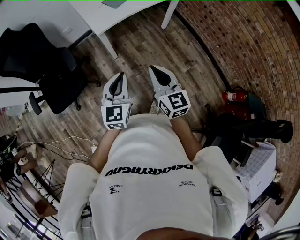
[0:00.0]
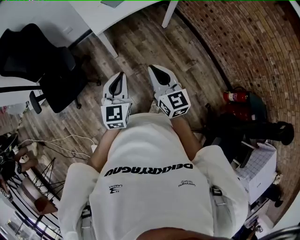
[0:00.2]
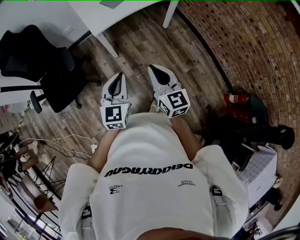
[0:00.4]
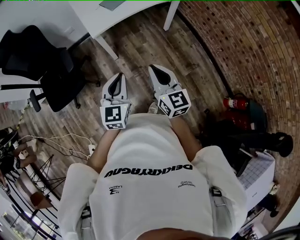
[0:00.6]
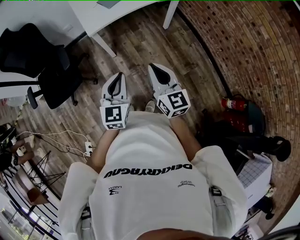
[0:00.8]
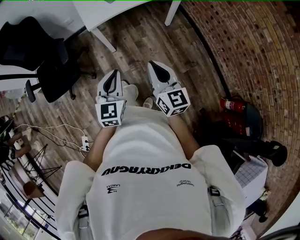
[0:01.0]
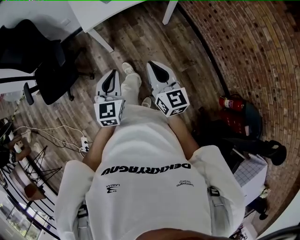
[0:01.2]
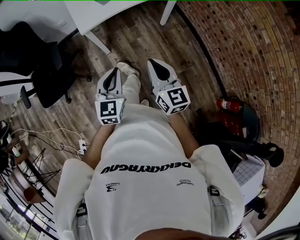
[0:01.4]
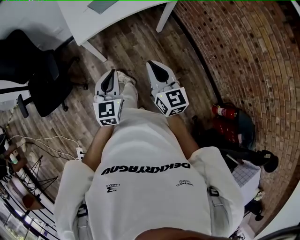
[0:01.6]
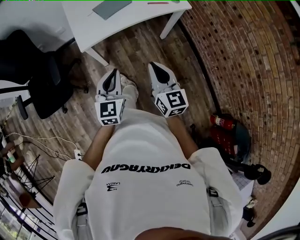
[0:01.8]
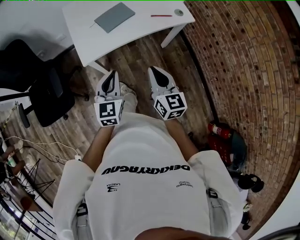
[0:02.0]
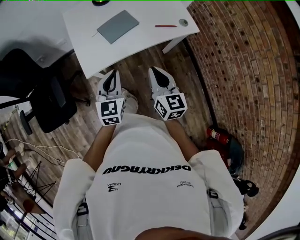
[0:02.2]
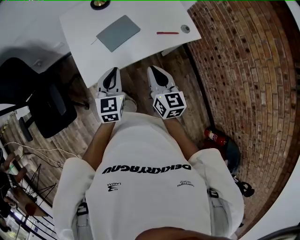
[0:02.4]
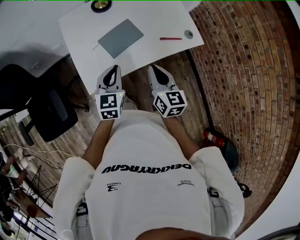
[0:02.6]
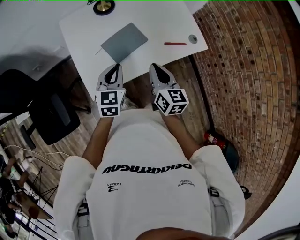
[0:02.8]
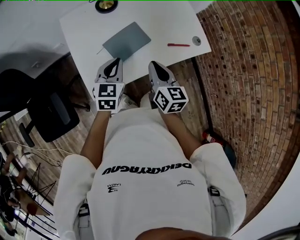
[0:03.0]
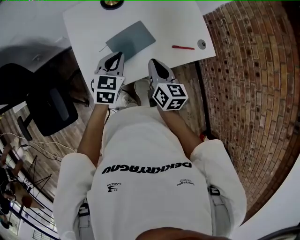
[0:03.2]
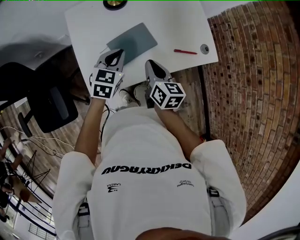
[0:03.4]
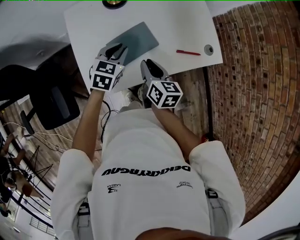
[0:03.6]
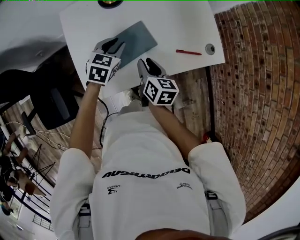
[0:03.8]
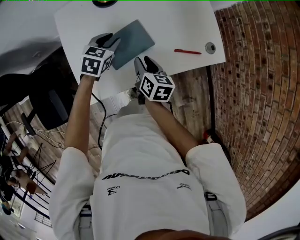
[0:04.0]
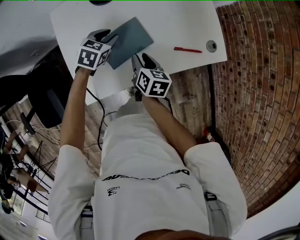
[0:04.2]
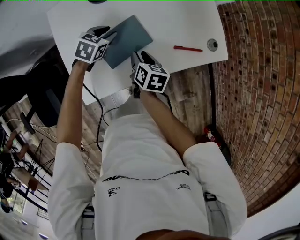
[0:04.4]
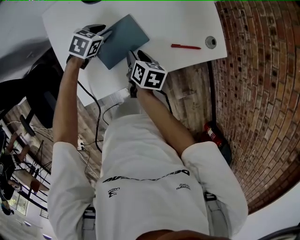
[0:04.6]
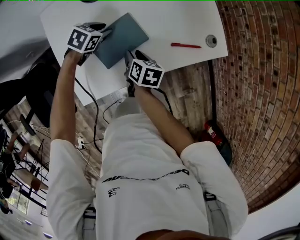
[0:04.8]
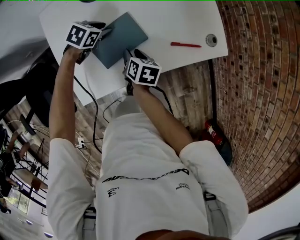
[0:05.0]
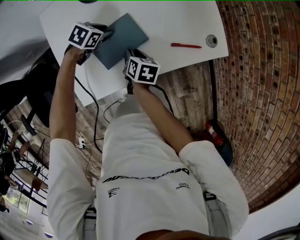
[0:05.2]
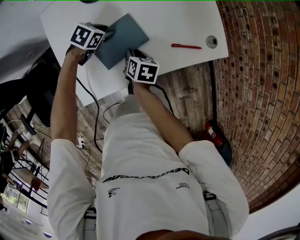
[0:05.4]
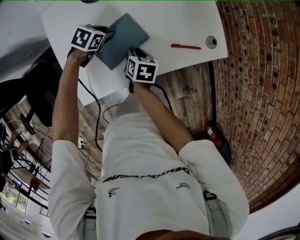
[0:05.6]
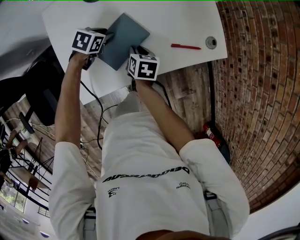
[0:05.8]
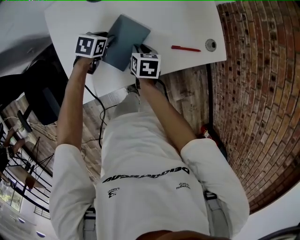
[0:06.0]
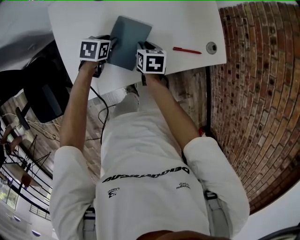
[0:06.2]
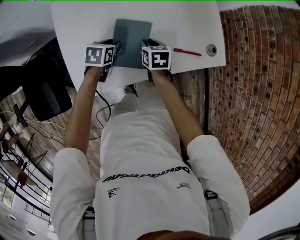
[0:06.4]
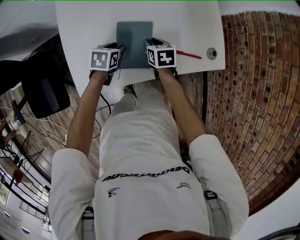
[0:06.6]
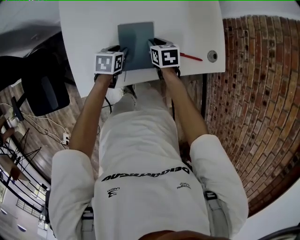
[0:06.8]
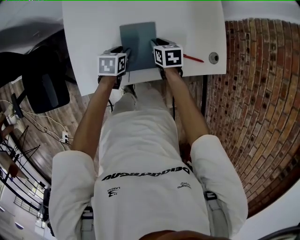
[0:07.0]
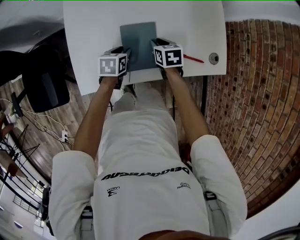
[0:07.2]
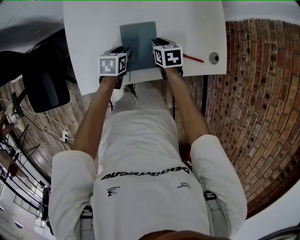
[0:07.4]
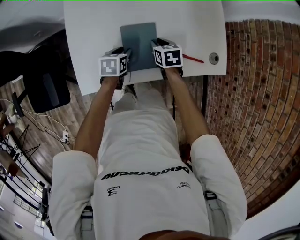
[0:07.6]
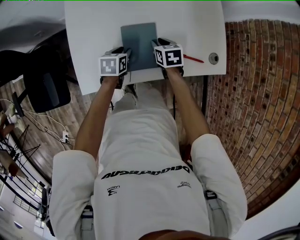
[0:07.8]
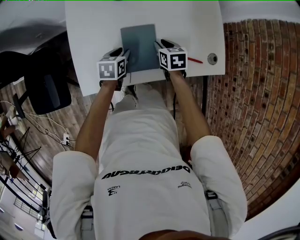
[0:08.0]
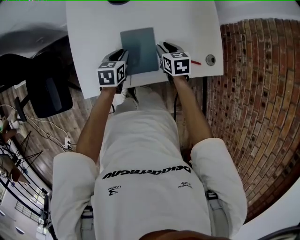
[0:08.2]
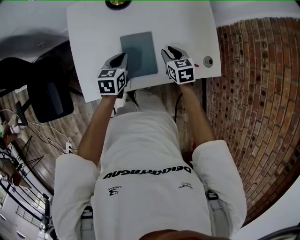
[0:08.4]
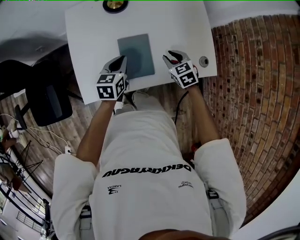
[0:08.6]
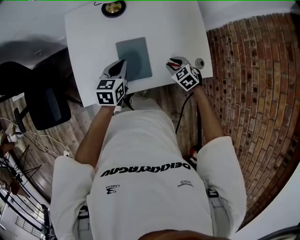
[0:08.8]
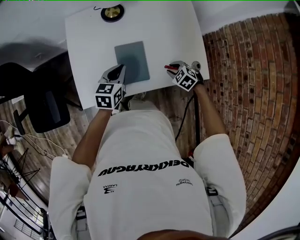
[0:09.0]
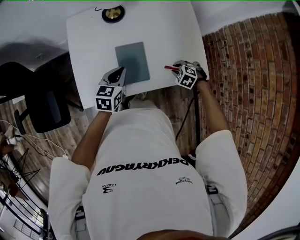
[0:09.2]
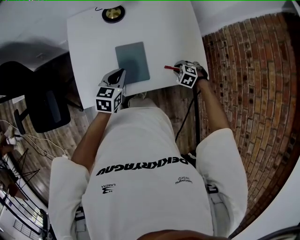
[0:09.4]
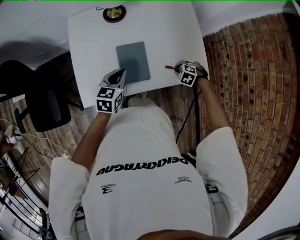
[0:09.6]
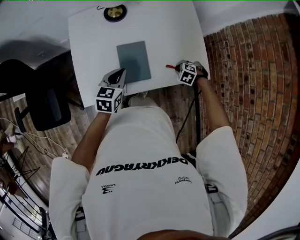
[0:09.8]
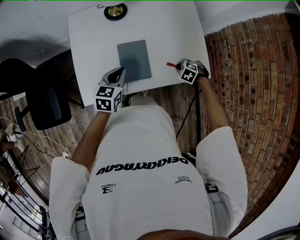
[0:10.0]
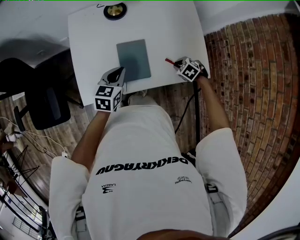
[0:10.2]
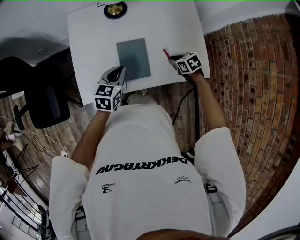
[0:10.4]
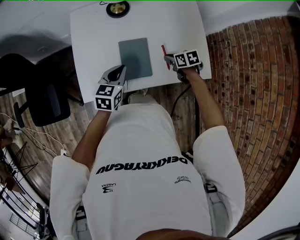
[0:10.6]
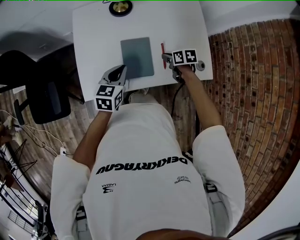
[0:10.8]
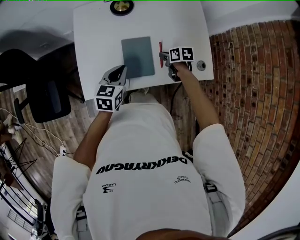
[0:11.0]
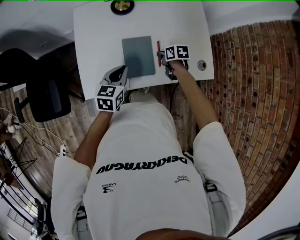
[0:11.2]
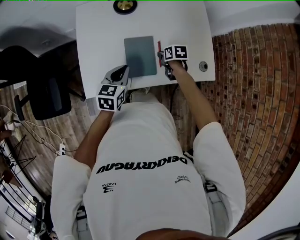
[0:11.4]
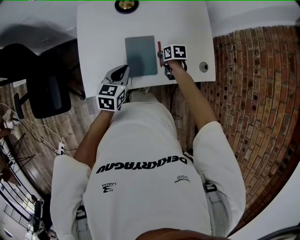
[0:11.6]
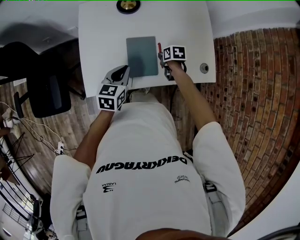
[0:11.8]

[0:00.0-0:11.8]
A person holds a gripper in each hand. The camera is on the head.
0:00.0 to 0:01.4: The right gripper shifts roughly 15 cm to the right and forward. Meanwhile the left gripper travels to the right, forward and downward by approximately 15 cm.
0:01.4 to 0:03.0: Both grippers are carried forward, roughly 60 cm.
0:03.0 to 0:04.4: The right gripper travels downward and forward by roughly 20 cm, swivels roughly 30 degrees, and opens up, while the left gripper shifts approximately 25 cm forward and downward, changes its angle by some 30 degrees, and opens up.
0:04.4 to 0:06.0: There are only small adjustments of the grippers.
0:06.0 to 0:07.4: The right gripper turns by approximately 20 degrees, while the left gripper heads backward, covering roughly 5 cm, and changes its angle by roughly 30 degrees.
0:07.4 to 0:08.8: The right gripper is displaced to the right, backward and upward by approximately 10 cm, and twists approximately 40 degrees counterclockwise, seen from behind. Meanwhile the left gripper heads upward, covering about 15 cm, rotates approximately 20 degrees, and closes up.
0:08.8 to 0:10.4: The right gripper turns by about 20 degrees.
0:10.4 to 0:11.8: The right gripper is displaced to the left by approximately 5 cm, and changes its angle by about 30 degrees.

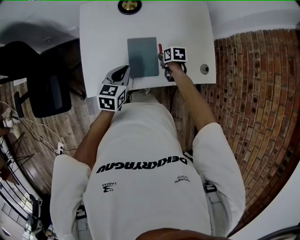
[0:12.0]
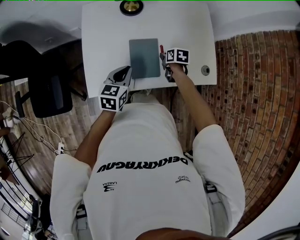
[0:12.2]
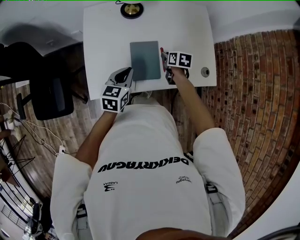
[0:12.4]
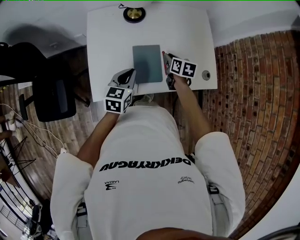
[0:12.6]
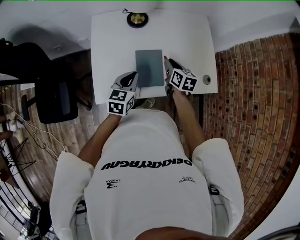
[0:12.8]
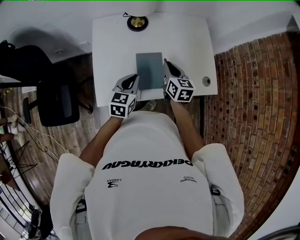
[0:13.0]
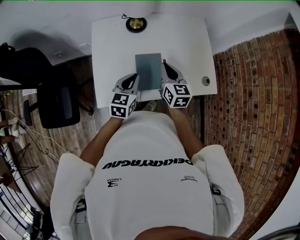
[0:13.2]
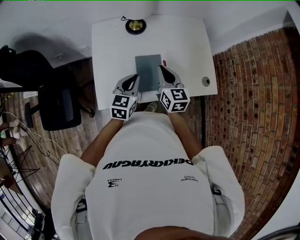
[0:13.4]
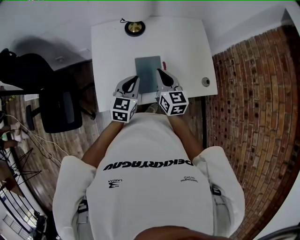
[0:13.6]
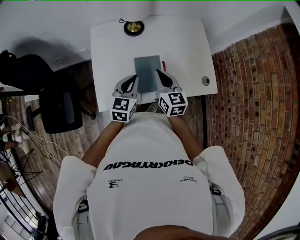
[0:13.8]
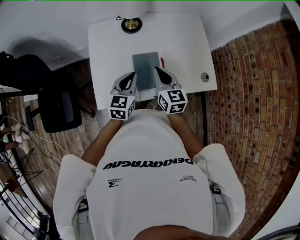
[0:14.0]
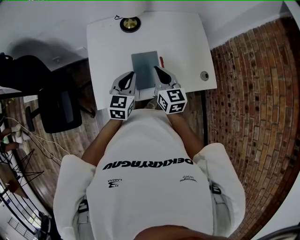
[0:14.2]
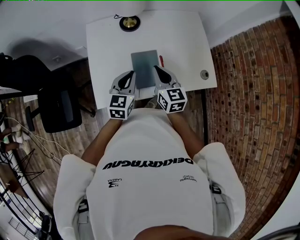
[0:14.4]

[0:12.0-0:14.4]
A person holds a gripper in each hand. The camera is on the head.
0:12.0 to 0:13.2: The left gripper moves upward, roughly 5 cm; the right gripper travels upward by some 25 cm, and points its fingers approximately 40 degrees further upward.
0:13.2 to 0:14.4: The grippers make only small movements.

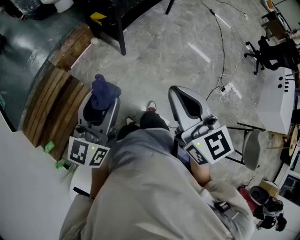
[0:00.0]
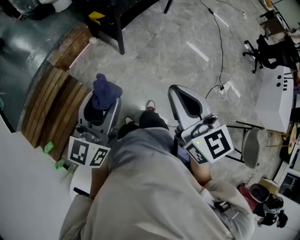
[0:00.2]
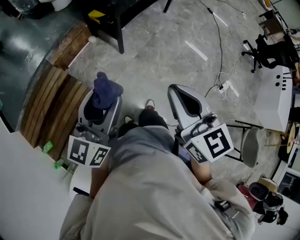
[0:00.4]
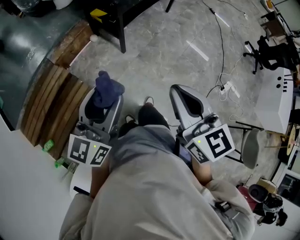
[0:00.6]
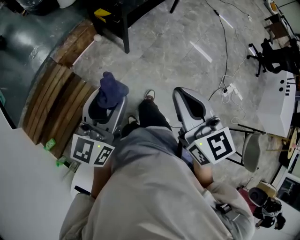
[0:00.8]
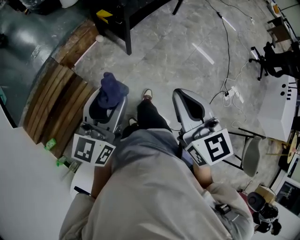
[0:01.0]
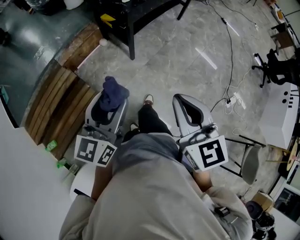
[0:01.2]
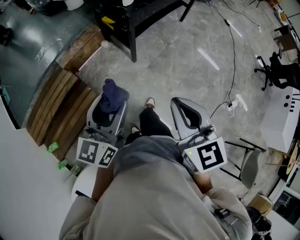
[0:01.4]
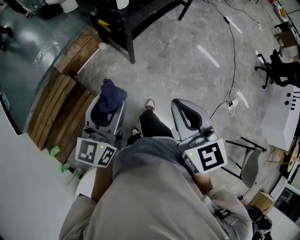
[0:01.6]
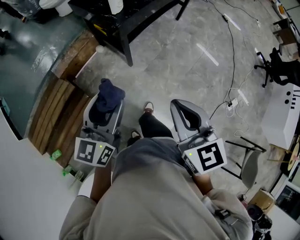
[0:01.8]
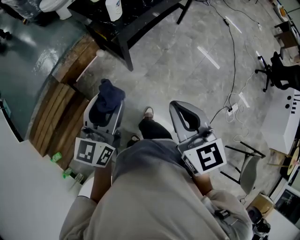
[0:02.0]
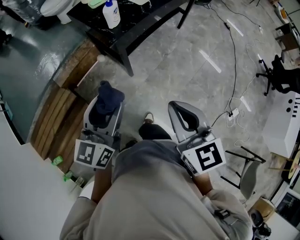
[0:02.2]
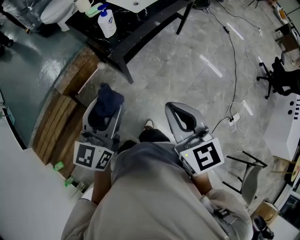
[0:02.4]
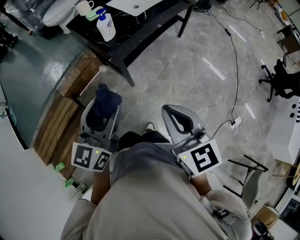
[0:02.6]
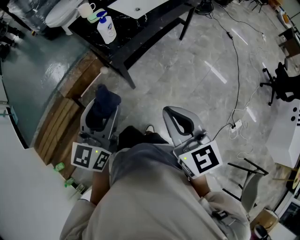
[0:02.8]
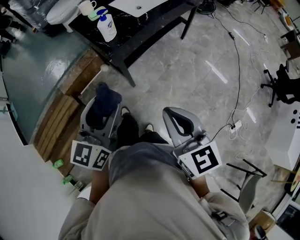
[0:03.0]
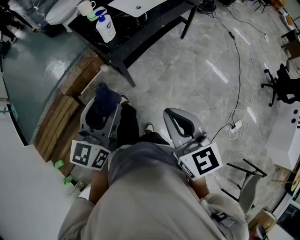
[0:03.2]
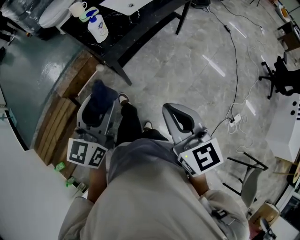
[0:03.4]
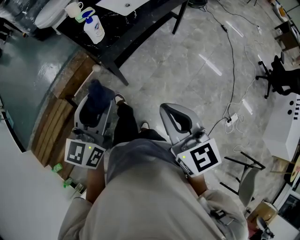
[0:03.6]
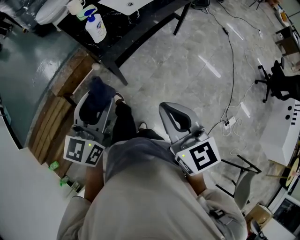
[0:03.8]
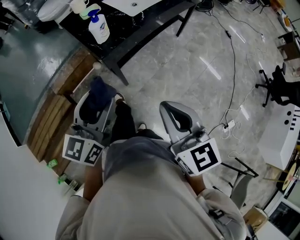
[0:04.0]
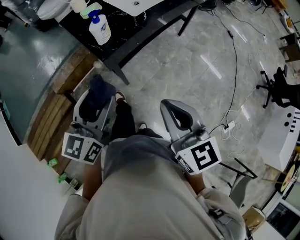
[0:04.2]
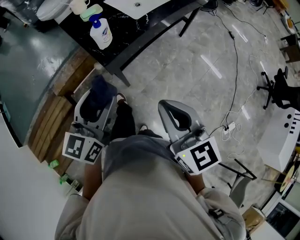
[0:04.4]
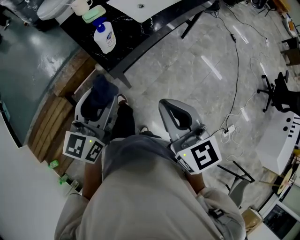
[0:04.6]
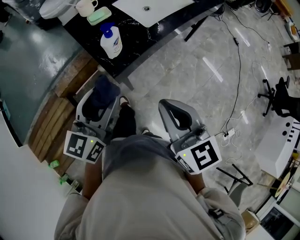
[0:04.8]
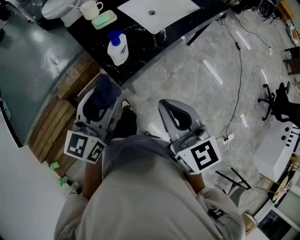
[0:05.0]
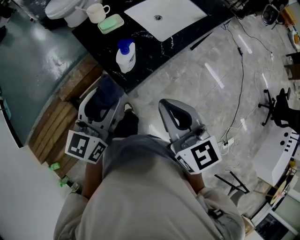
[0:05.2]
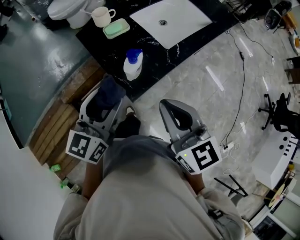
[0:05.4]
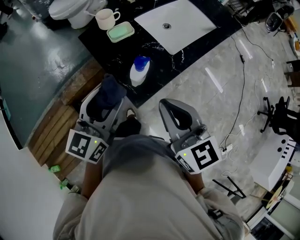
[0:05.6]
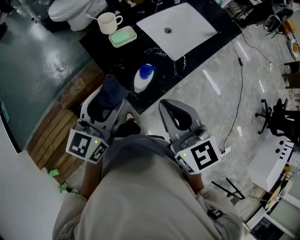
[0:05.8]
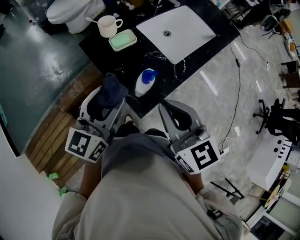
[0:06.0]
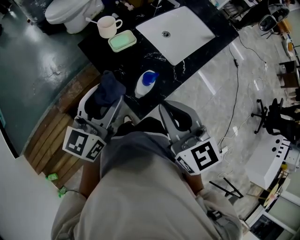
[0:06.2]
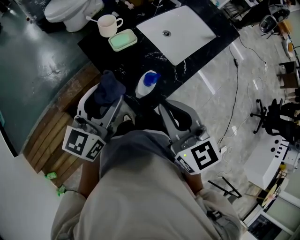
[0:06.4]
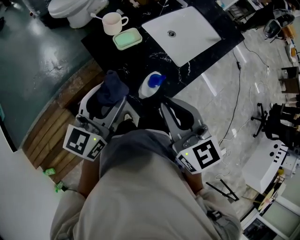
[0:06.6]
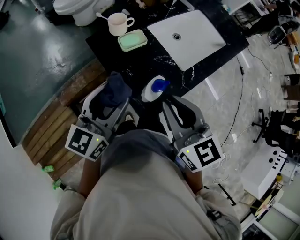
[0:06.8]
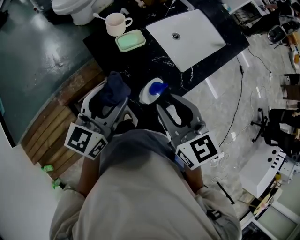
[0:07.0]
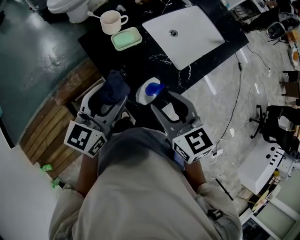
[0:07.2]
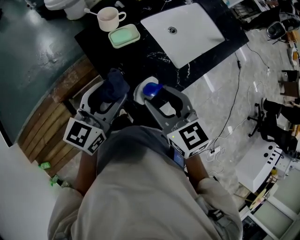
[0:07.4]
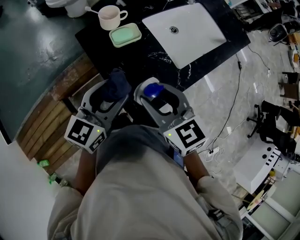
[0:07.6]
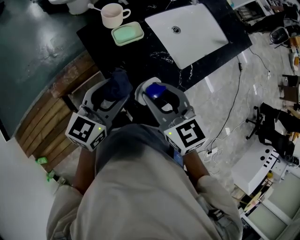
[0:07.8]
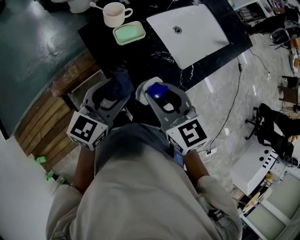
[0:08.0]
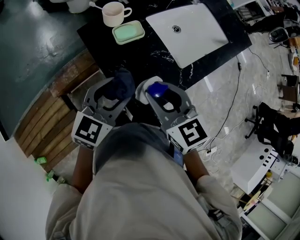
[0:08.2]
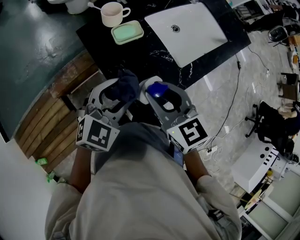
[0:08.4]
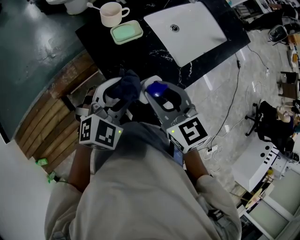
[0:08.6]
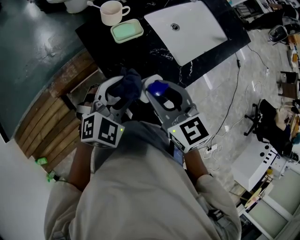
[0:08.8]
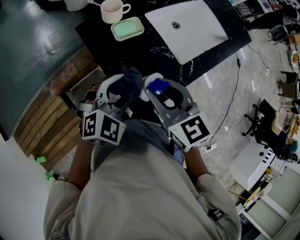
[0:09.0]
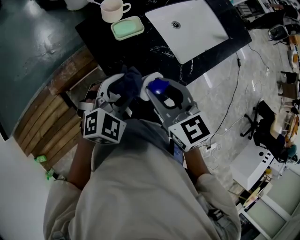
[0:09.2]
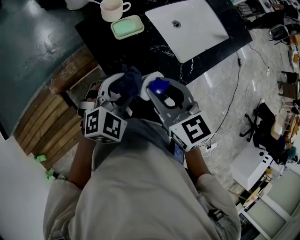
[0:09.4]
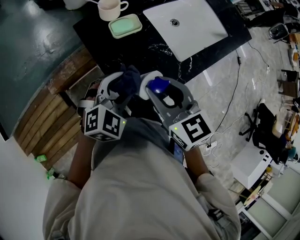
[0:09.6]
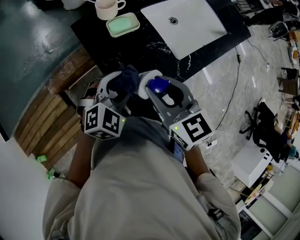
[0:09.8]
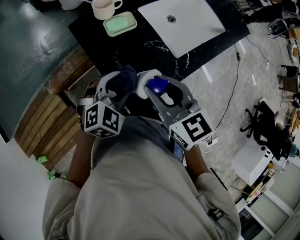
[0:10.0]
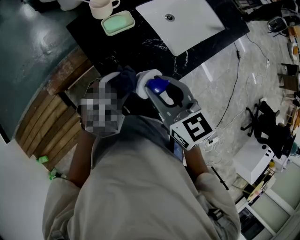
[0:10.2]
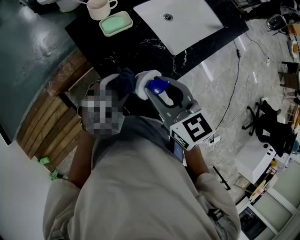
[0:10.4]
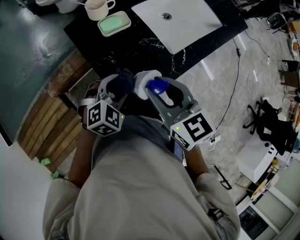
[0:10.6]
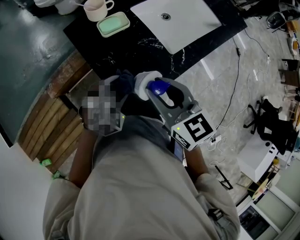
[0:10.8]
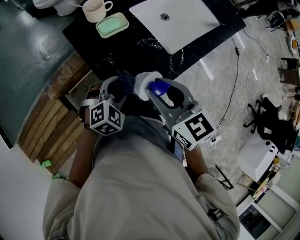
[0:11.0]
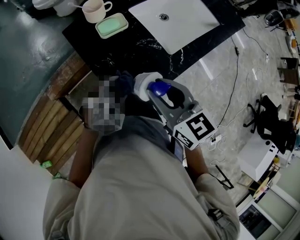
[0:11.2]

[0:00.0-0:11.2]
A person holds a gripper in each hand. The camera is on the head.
0:00.0 to 0:01.6: The two grippers go about 15 cm forward.
0:01.6 to 0:03.2: The two grippers go approximately 15 cm forward and to the right.
0:03.2 to 0:04.8: The grippers both shift forward by roughly 20 cm.
0:04.8 to 0:06.4: The grippers both shift forward and to the left by about 20 cm.
0:06.4 to 0:08.0: The right gripper moves downward and forward, approximately 10 cm, and opens its fingers. The left gripper is displaced downward by some 10 cm.
0:08.0 to 0:09.6: The left gripper changes place by about 5 cm, and turns by roughly 40 degrees.
0:09.6 to 0:11.2: The left gripper moves downward, about 5 cm.
